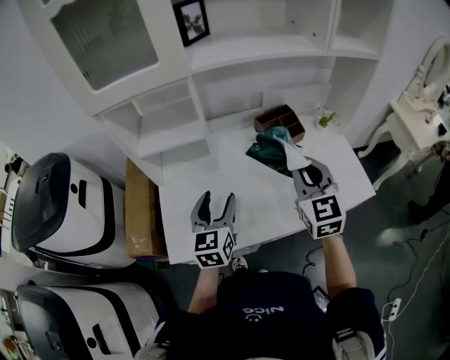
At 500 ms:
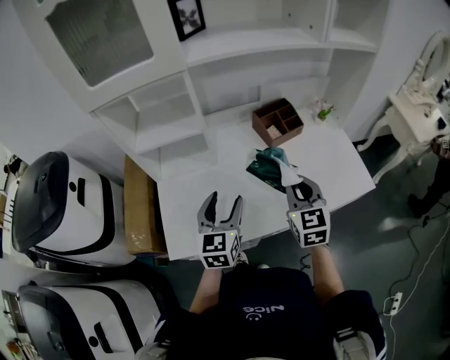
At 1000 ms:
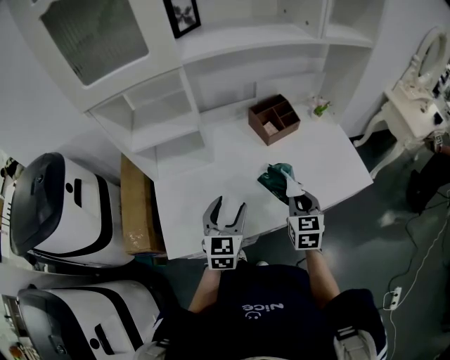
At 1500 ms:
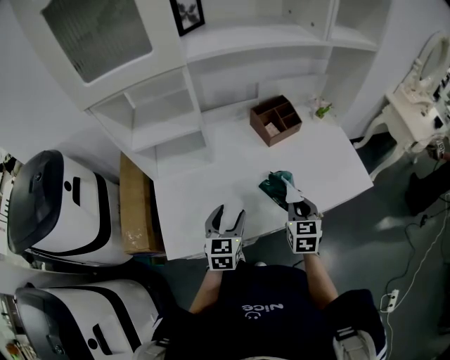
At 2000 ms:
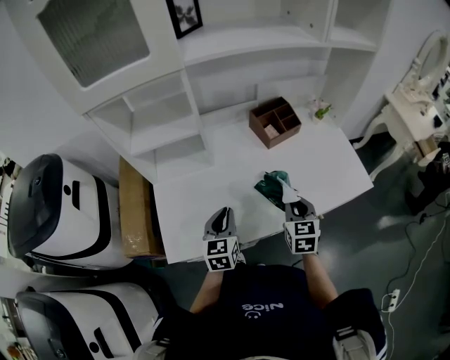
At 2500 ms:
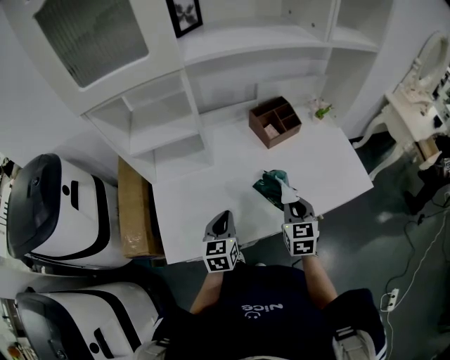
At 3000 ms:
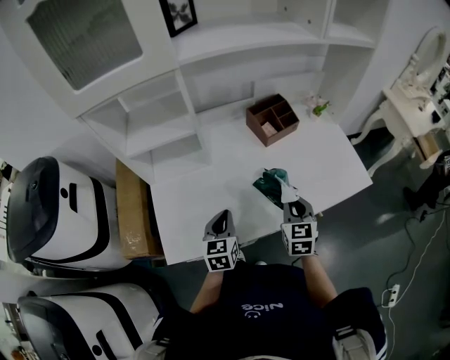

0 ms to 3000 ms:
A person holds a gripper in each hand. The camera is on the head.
0 ms to 1500 ms: The right gripper goes roughly 20 cm downward, and swivels some 30 degrees; the left gripper shifts approximately 10 cm downward.
1500 ms to 3000 ms: The left gripper closes.

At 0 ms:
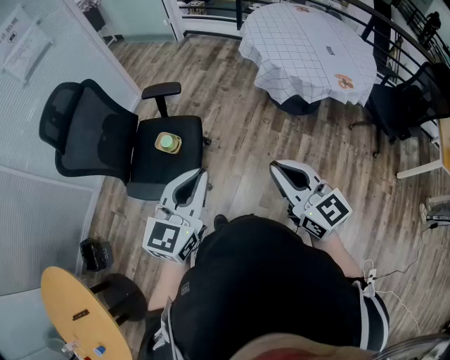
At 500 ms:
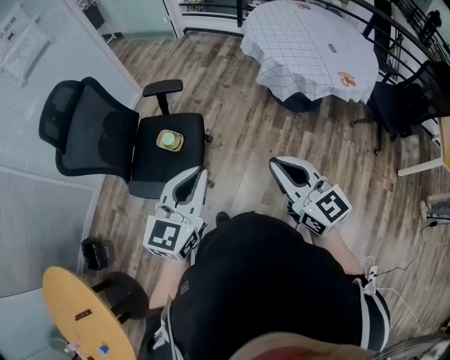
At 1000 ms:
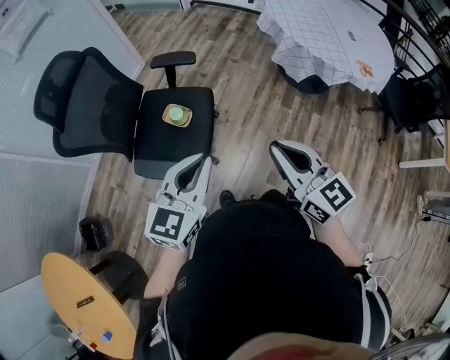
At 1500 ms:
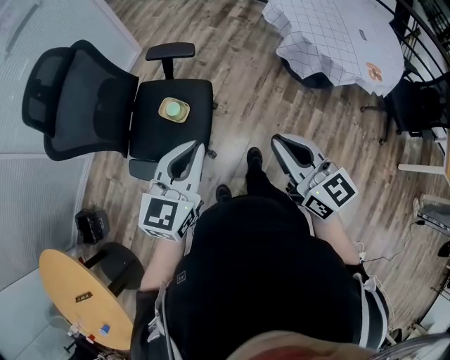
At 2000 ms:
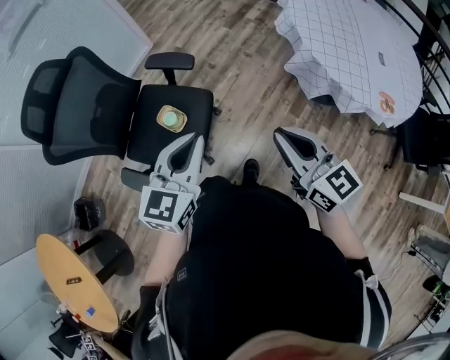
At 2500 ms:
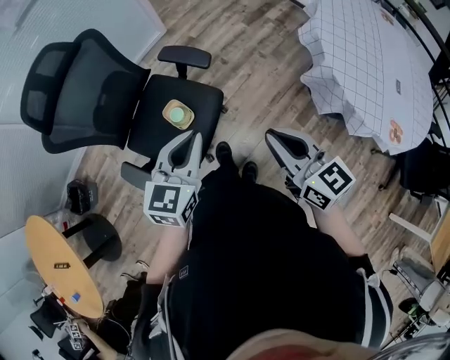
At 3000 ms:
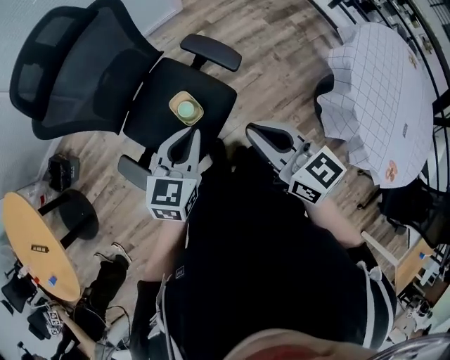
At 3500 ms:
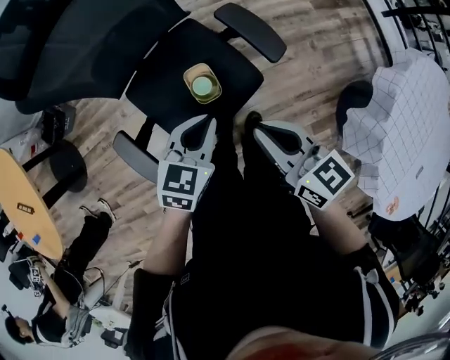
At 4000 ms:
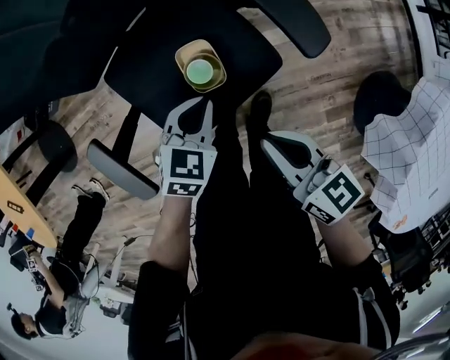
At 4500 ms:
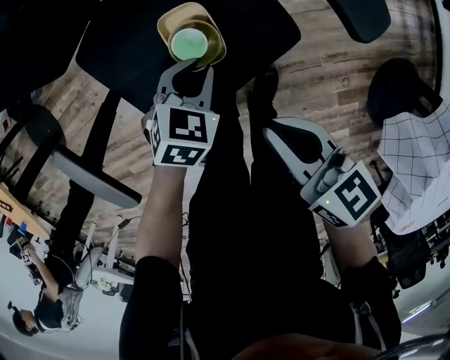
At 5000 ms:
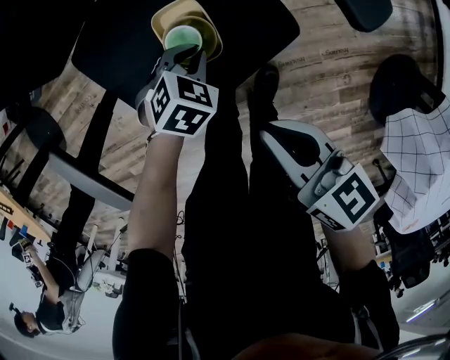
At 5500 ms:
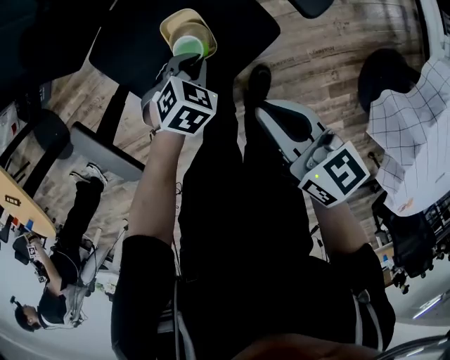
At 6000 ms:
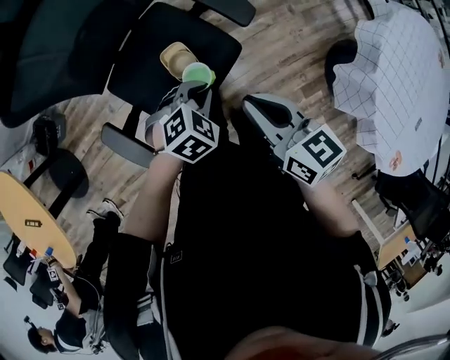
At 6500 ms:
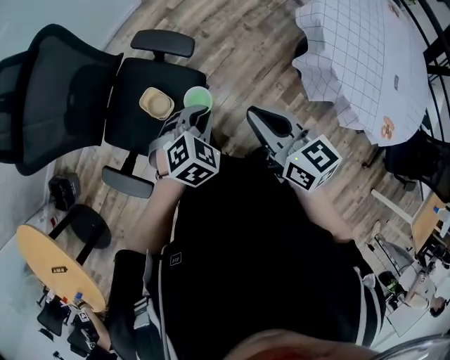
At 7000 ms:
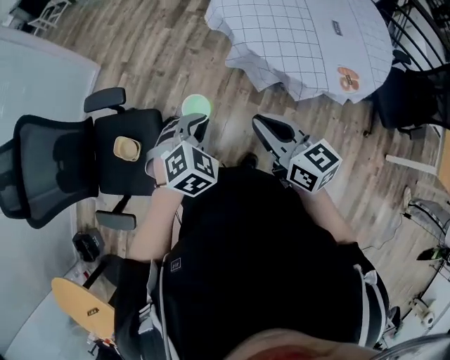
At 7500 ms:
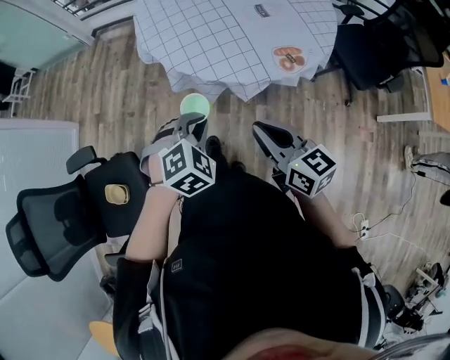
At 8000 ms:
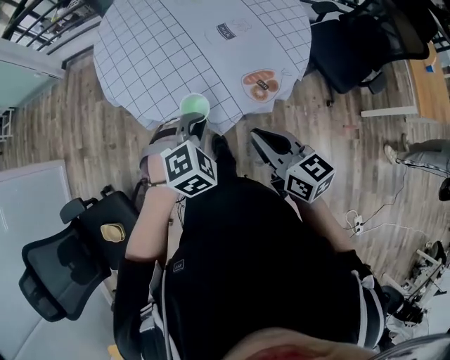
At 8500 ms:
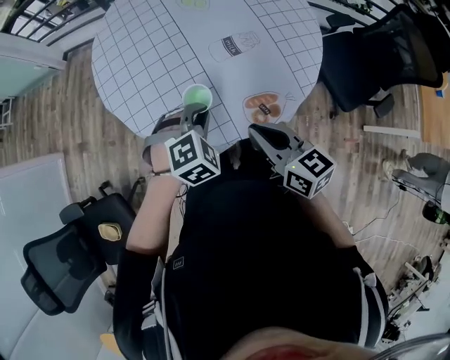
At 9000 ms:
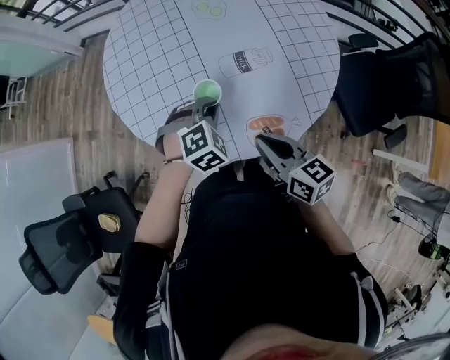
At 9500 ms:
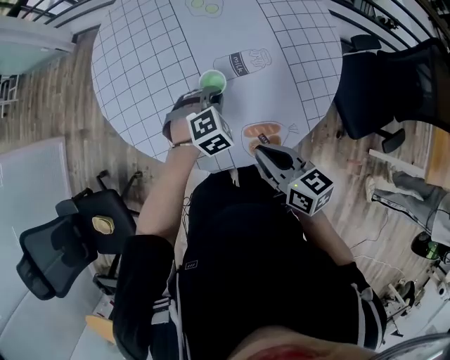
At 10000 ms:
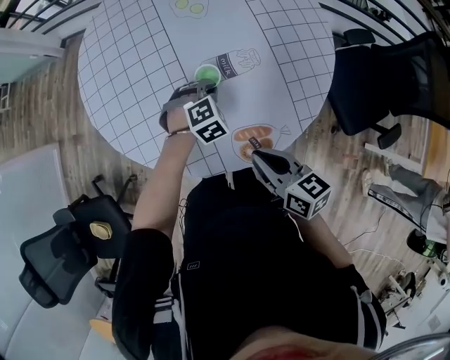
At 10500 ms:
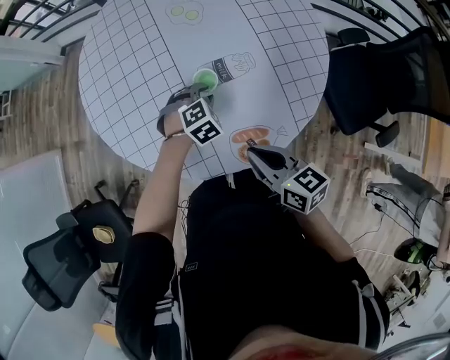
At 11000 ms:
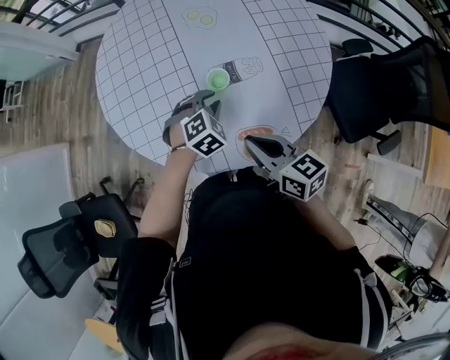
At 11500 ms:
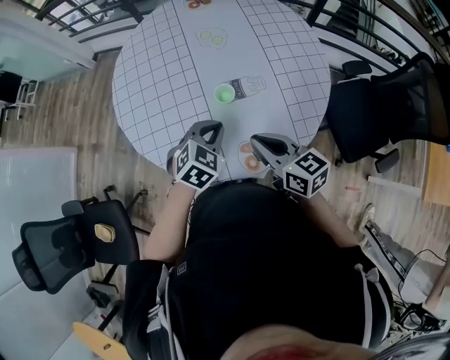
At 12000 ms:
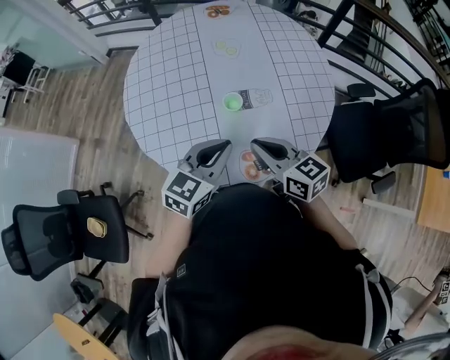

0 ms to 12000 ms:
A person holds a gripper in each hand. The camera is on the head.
0 ms to 2000 ms: The grippers both shift forward by about 25 cm.
2000 ms to 4000 ms: The left gripper goes roughly 40 cm downward, and angles its fingers downward, by some 30 degrees. Meanwhile the right gripper moves approximately 40 cm, and swivels approximately 50 degrees.
4000 ms to 6000 ms: The right gripper heads upward, covering approximately 15 cm. Meanwhile the left gripper heads upward, backward and to the right, covering approximately 15 cm, and rotates about 40 degrees.
6000 ms to 8000 ms: The two grippers travel together, some 70 cm. The left gripper twists about 70 degrees clockwise, seen from behind. The right gripper rotates roughly 60 degrees.
8000 ms to 10000 ms: The right gripper goes some 20 cm forward, to the right and downward. Meanwhile the left gripper is displaced forward, to the right and downward by approximately 35 cm.
10000 ms to 12000 ms: The left gripper moves upward and backward, approximately 25 cm, and tips its fingers upward by roughly 40 degrees, while the right gripper heads upward, covering some 10 cm, and rotates roughly 20 degrees.

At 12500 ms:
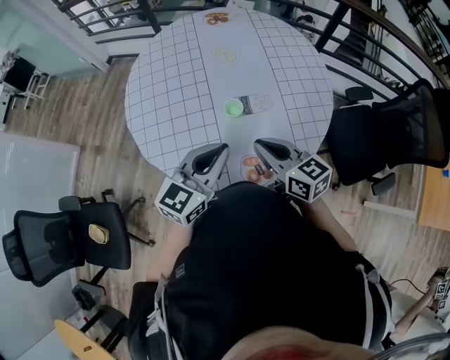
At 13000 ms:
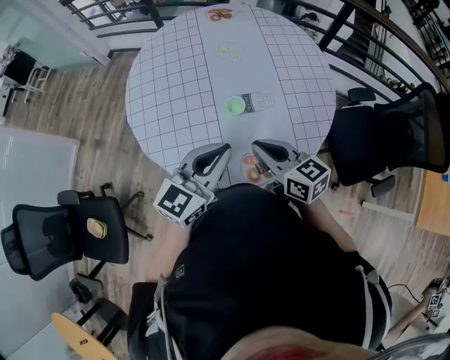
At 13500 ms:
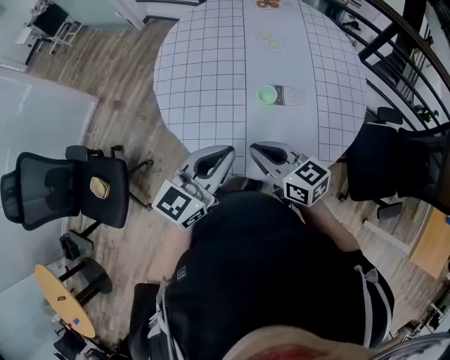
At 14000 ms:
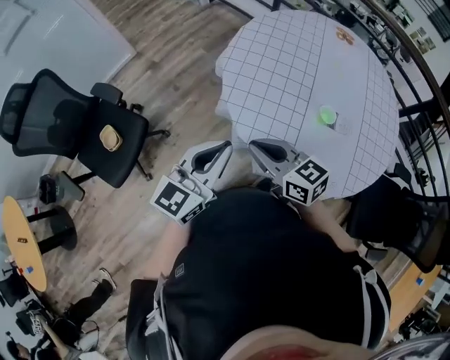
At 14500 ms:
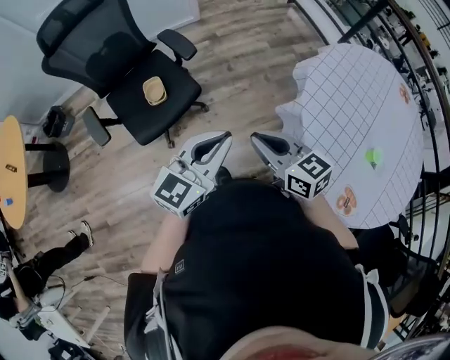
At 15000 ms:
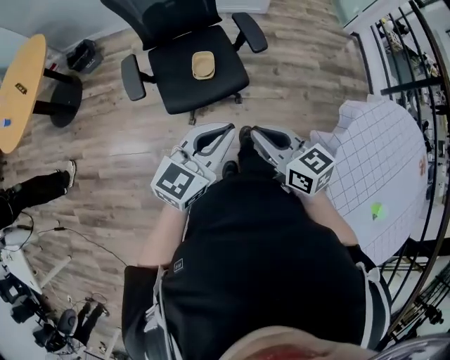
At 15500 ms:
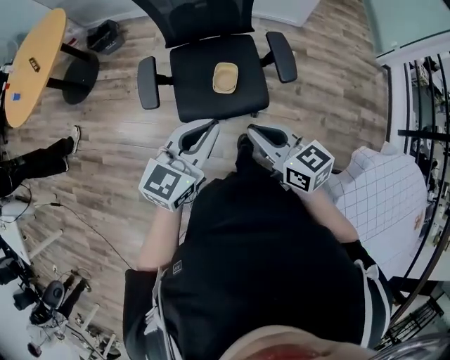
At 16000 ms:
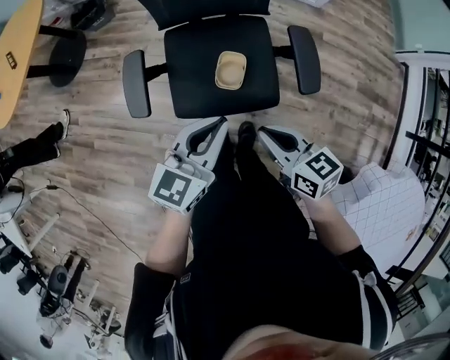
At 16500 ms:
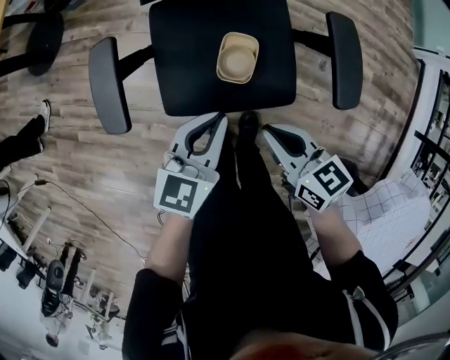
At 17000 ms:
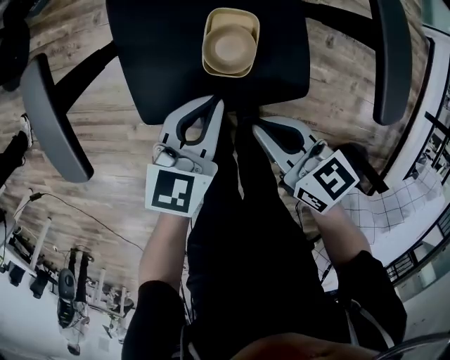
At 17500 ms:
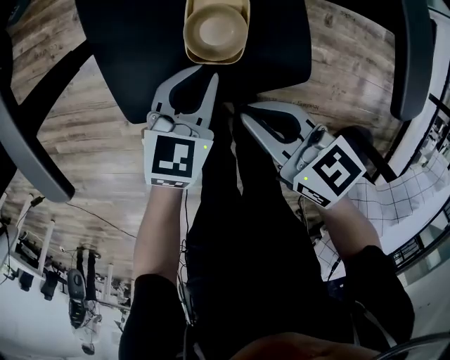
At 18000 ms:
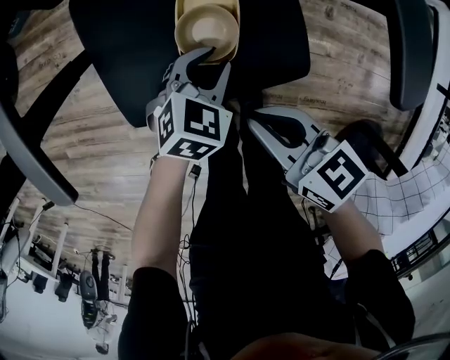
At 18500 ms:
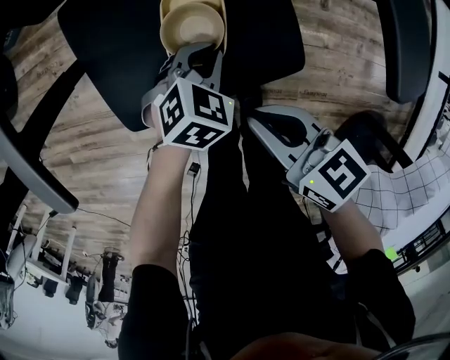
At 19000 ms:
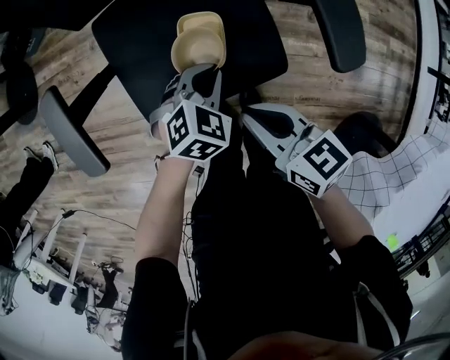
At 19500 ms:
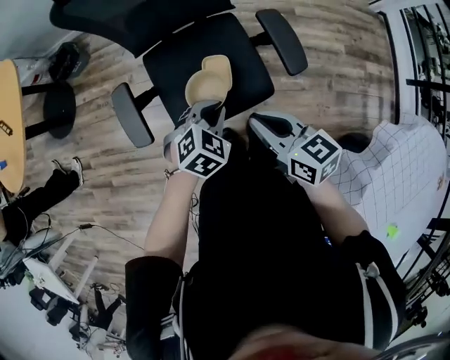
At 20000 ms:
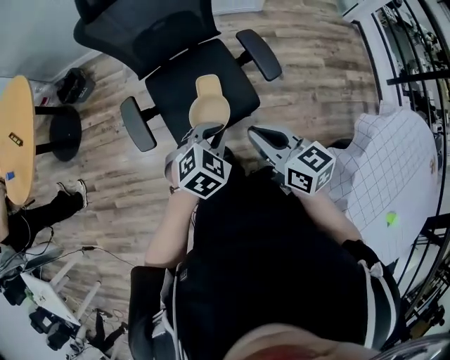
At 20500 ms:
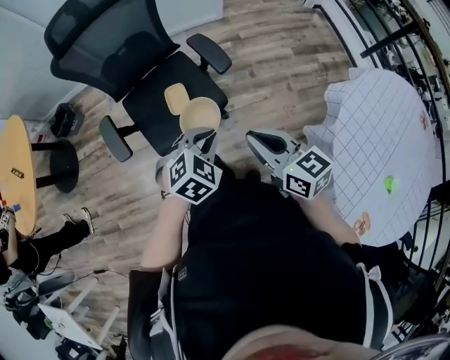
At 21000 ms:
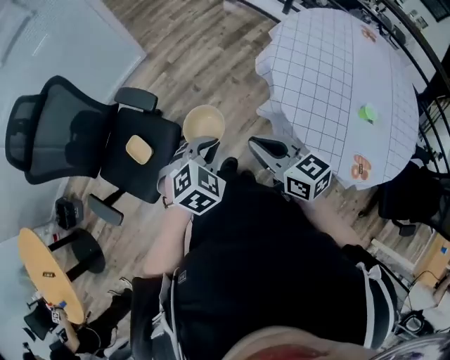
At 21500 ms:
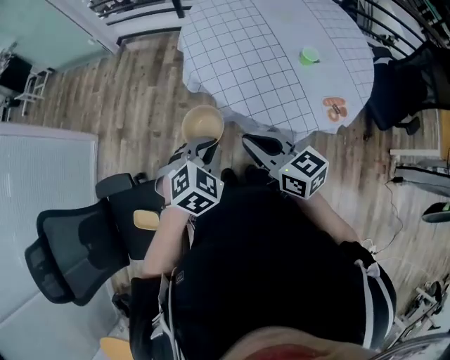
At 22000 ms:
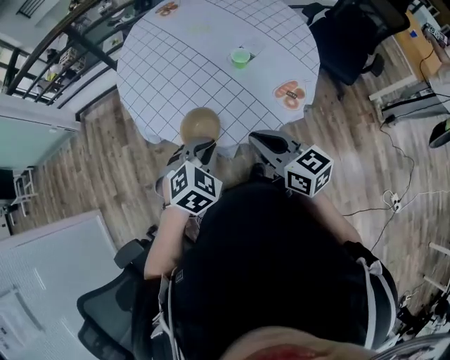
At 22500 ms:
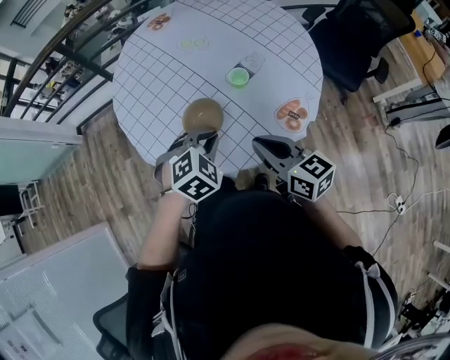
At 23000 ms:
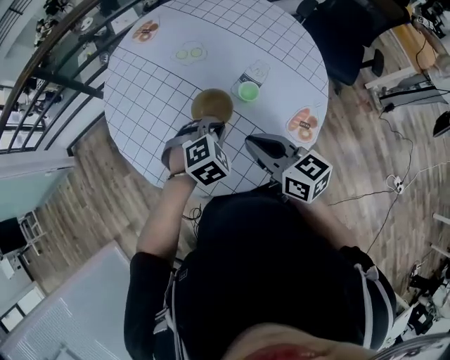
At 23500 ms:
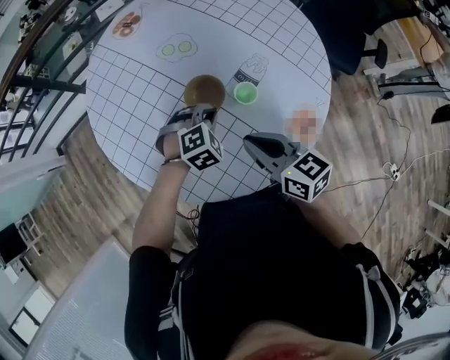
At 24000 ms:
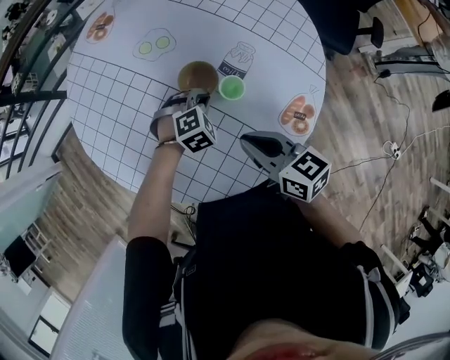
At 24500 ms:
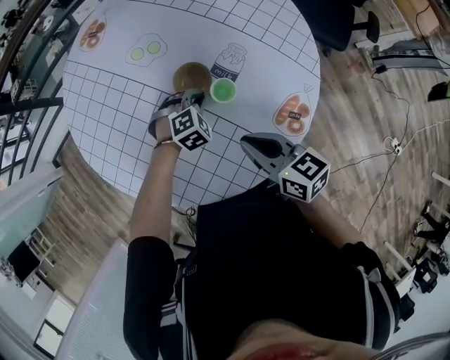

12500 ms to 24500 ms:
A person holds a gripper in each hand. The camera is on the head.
12500 ms to 14500 ms: Both grippers are carried about 50 cm. The left gripper changes its angle by some 50 degrees; the right gripper turns by about 60 degrees.
14500 ms to 16500 ms: The two grippers travel together, some 50 cm. The left gripper changes its angle by roughly 50 degrees. The right gripper changes its angle by about 40 degrees.
16500 ms to 18500 ms: The right gripper shifts roughly 15 cm downward; the left gripper heads downward, covering about 30 cm, and points its fingers approximately 30 degrees further downward.
18500 ms to 20500 ms: The grippers both shift upward and backward by approximately 50 cm. The left gripper turns by approximately 30 degrees; the right gripper turns by approximately 30 degrees.
20500 ms to 22500 ms: The two grippers travel together, roughly 60 cm. The right gripper changes its angle by some 90 degrees; the left gripper rotates around the line of its fingers by about 80 degrees, clockwise from behind.
22500 ms to 24500 ms: The right gripper shifts approximately 15 cm forward and downward, while the left gripper travels forward and downward by approximately 30 cm, and turns by some 20 degrees.
